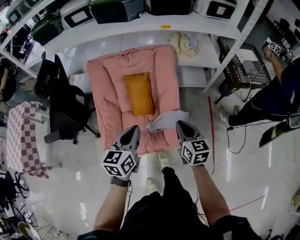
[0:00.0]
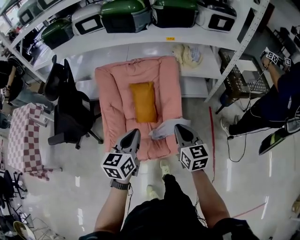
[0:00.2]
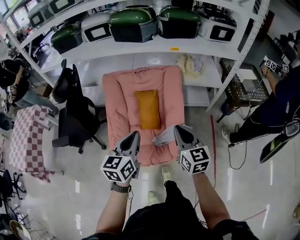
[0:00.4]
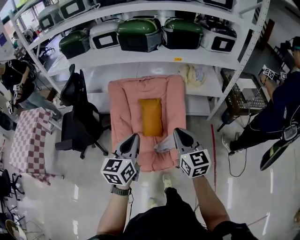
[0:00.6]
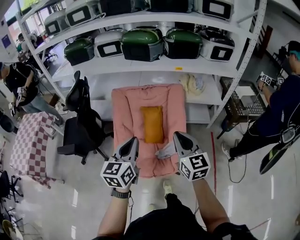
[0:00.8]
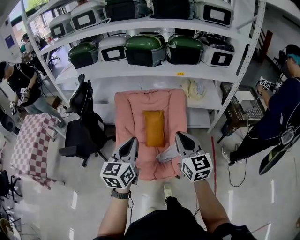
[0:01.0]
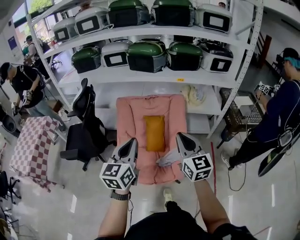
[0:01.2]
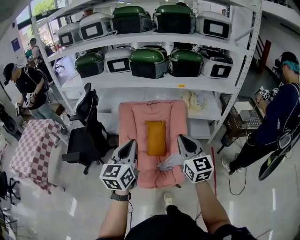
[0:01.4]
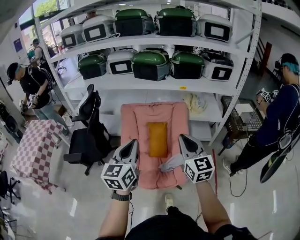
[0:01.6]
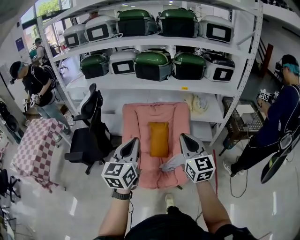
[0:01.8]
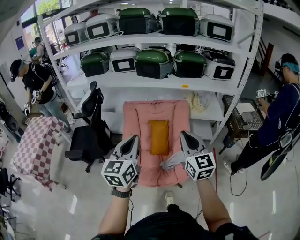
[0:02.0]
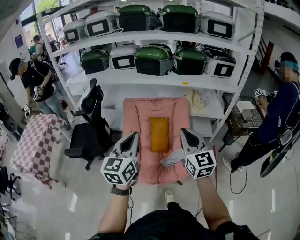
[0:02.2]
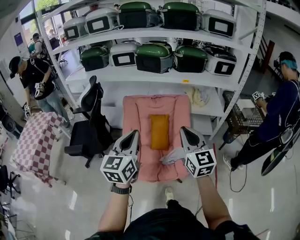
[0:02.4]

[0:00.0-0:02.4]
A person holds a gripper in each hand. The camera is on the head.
0:00.0 to 0:01.2: The left gripper is displaced upward and to the left by some 20 cm; the right gripper travels upward by about 25 cm, and swivels approximately 30 degrees.
0:01.2 to 0:02.4: The left gripper changes place by approximately 5 cm.

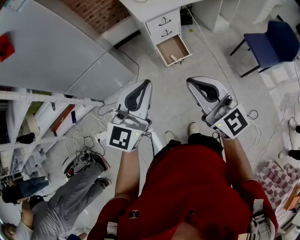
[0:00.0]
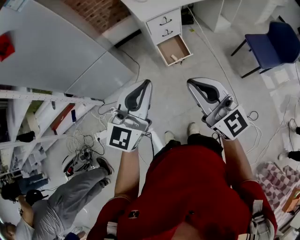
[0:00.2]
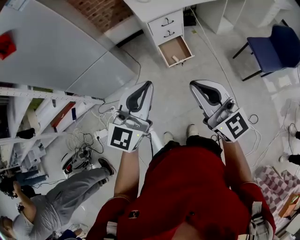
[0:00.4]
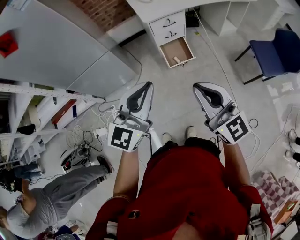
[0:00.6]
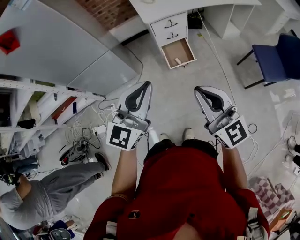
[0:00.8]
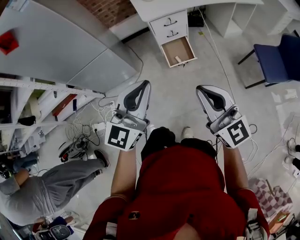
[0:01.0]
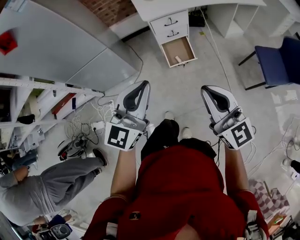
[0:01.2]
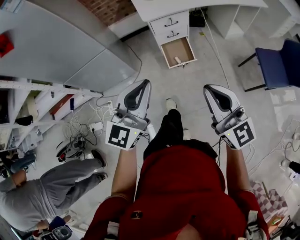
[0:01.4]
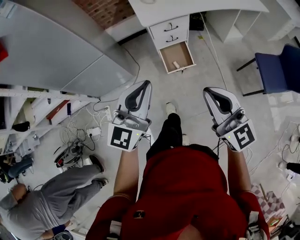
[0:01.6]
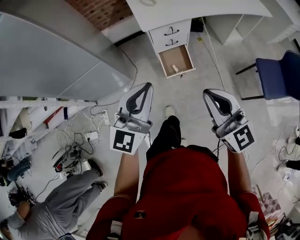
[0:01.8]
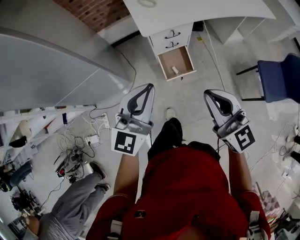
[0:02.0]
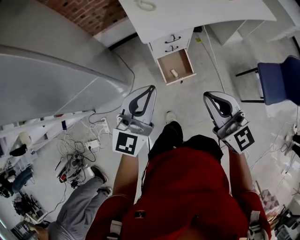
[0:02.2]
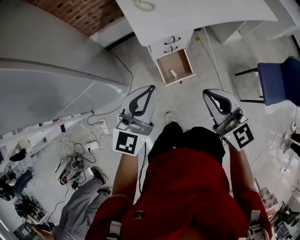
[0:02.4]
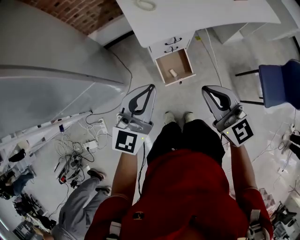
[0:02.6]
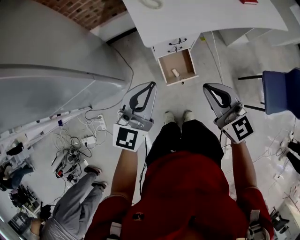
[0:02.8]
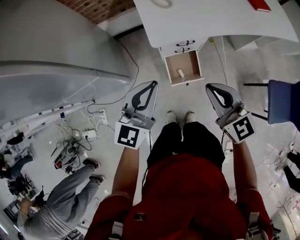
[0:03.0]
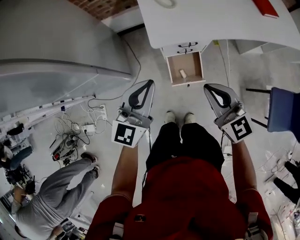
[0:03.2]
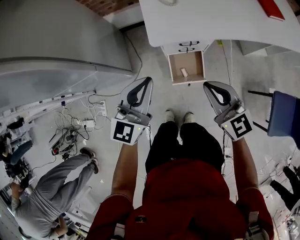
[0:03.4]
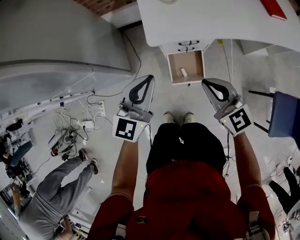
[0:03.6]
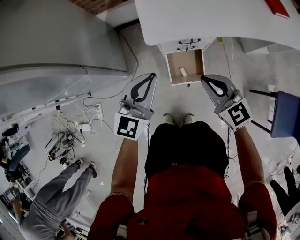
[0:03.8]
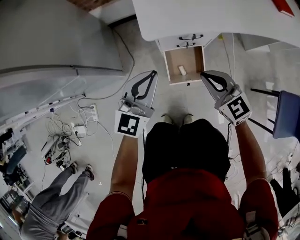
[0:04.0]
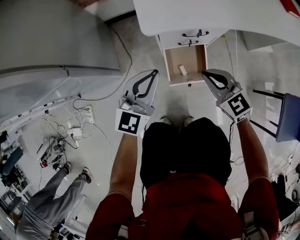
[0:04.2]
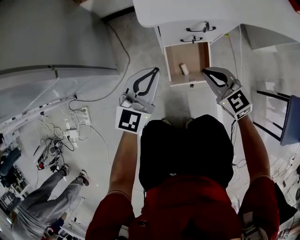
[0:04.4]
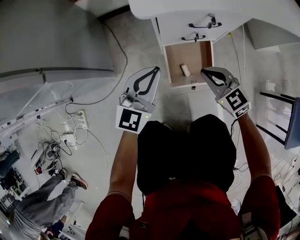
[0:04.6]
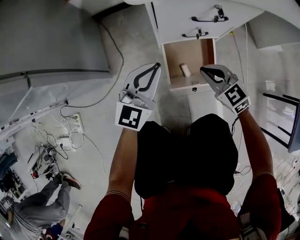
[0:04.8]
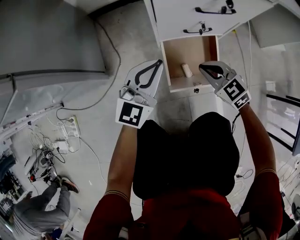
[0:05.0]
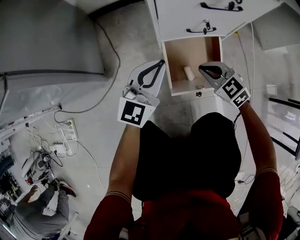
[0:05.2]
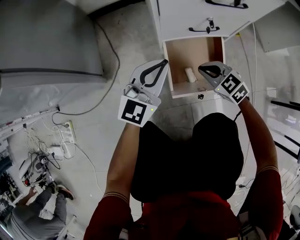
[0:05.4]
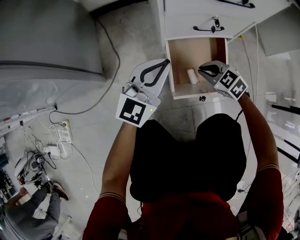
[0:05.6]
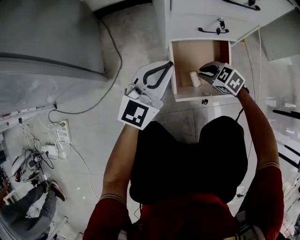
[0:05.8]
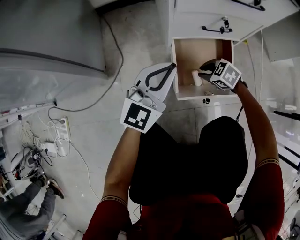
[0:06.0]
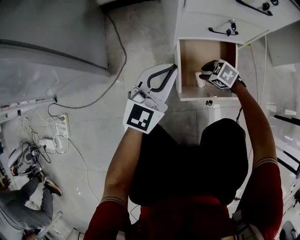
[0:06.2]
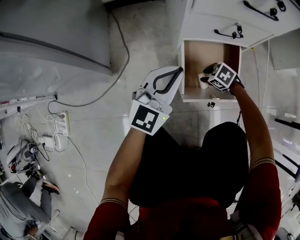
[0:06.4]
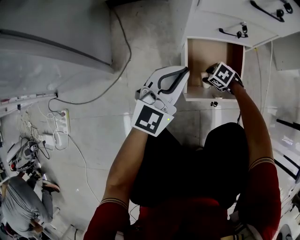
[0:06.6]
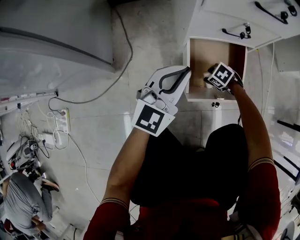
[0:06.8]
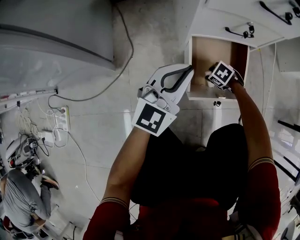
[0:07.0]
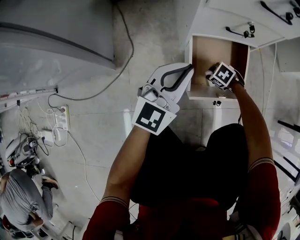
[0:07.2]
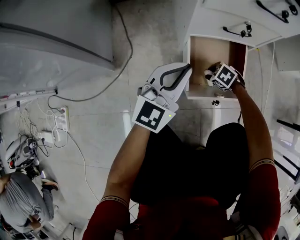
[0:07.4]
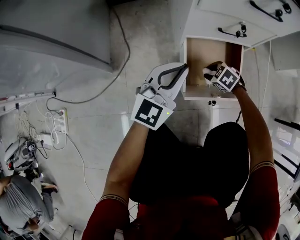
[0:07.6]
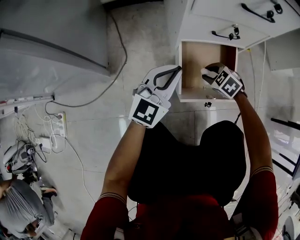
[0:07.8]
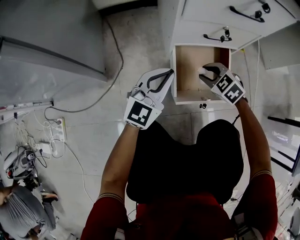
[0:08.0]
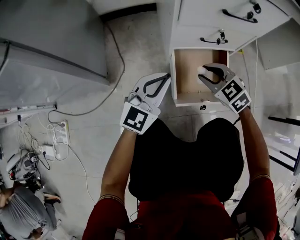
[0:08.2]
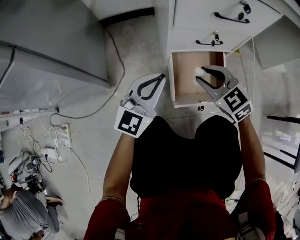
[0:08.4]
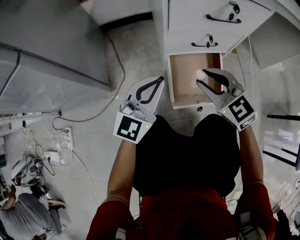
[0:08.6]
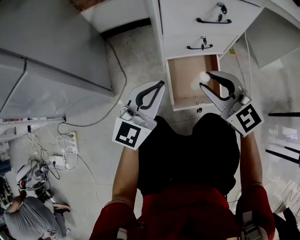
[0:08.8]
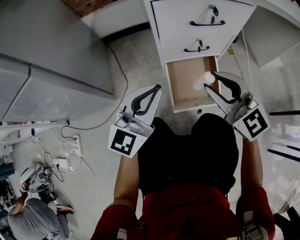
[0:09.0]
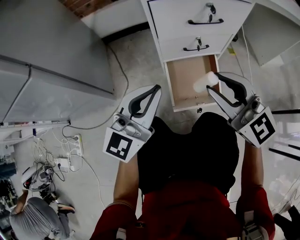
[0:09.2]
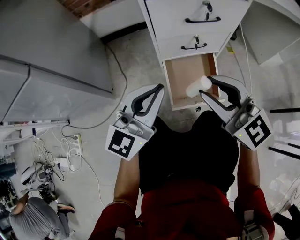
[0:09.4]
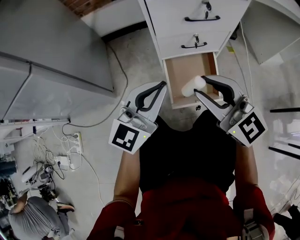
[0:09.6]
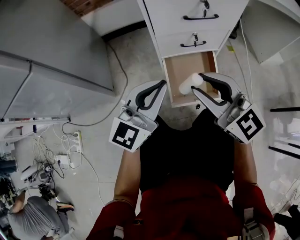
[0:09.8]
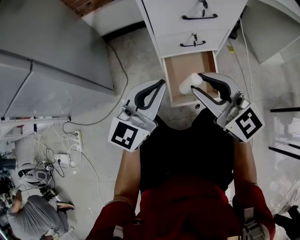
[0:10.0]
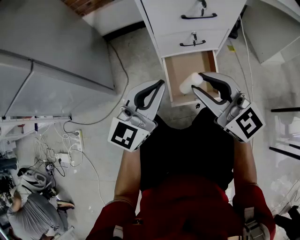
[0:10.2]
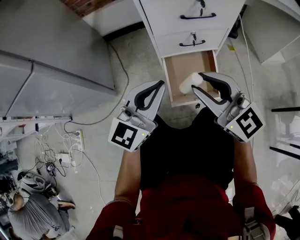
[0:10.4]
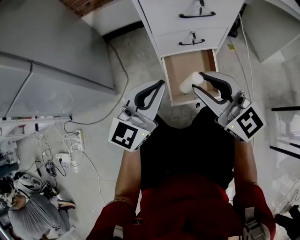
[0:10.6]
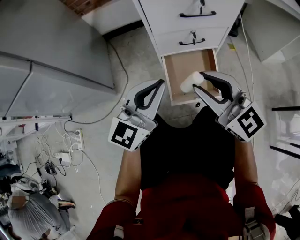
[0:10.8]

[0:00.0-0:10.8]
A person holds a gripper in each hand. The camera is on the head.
0:00.0 to 0:01.6: The left gripper heads forward and to the right, covering some 15 cm; the right gripper goes about 15 cm to the right and forward.
0:01.6 to 0:03.0: Both grippers travel together forward, about 35 cm.
0:03.0 to 0:04.6: Both grippers move downward, roughly 40 cm. The right gripper swivels approximately 20 degrees.
0:04.6 to 0:06.2: The left gripper travels downward by roughly 20 cm, while the right gripper goes roughly 35 cm downward, angles its fingers downward, by approximately 30 degrees, and opens.
0:06.2 to 0:07.8: The right gripper moves approximately 5 cm downward and comes back.
0:07.8 to 0:09.2: The left gripper moves upward, approximately 20 cm. Meanwhile the right gripper moves upward, about 40 cm, and angles its fingers upward, by approximately 60 degrees.
0:09.2 to 0:10.8: The grippers stay close to where they were, moving slightly.

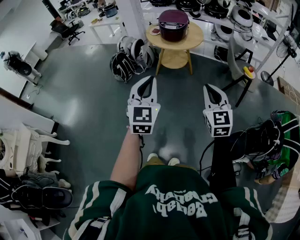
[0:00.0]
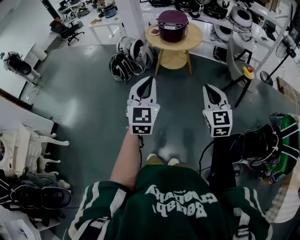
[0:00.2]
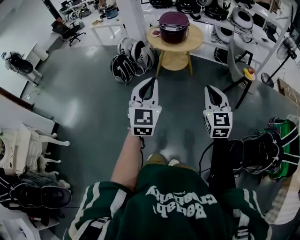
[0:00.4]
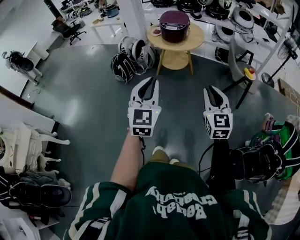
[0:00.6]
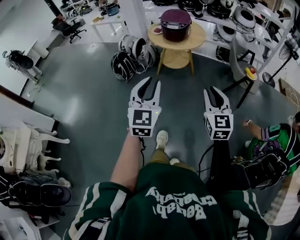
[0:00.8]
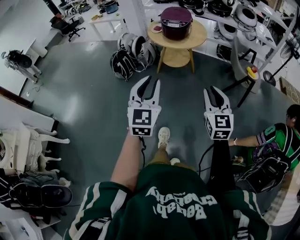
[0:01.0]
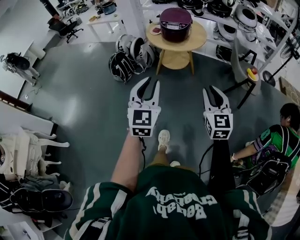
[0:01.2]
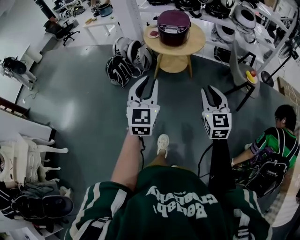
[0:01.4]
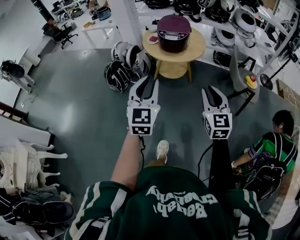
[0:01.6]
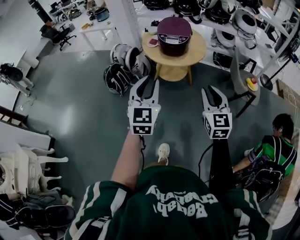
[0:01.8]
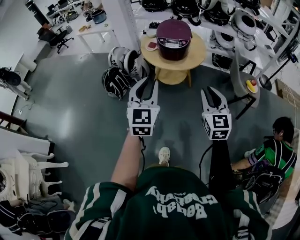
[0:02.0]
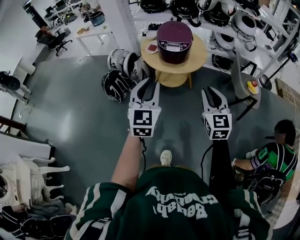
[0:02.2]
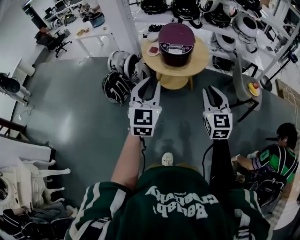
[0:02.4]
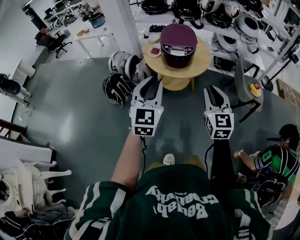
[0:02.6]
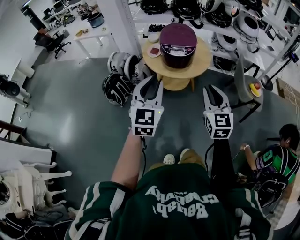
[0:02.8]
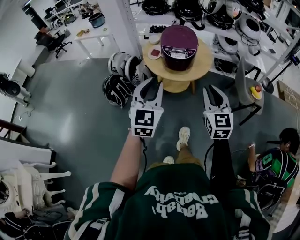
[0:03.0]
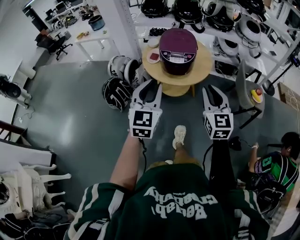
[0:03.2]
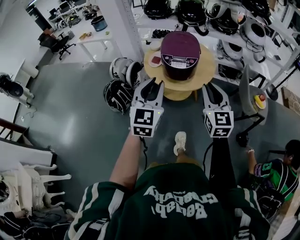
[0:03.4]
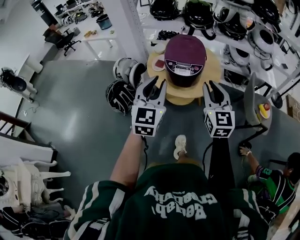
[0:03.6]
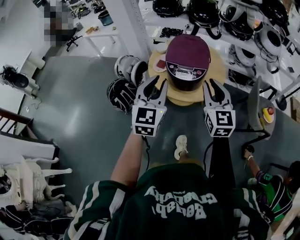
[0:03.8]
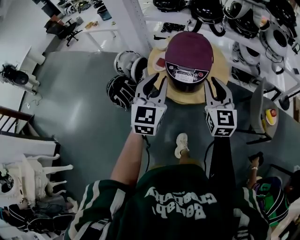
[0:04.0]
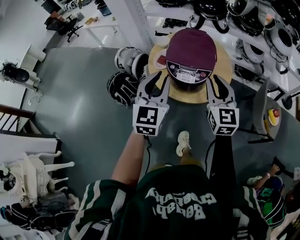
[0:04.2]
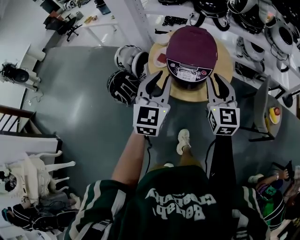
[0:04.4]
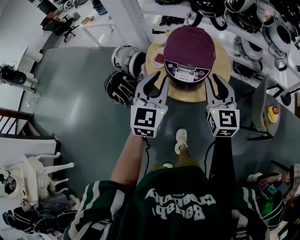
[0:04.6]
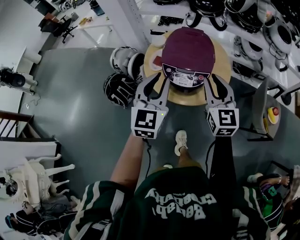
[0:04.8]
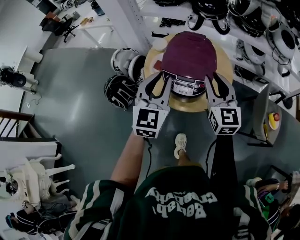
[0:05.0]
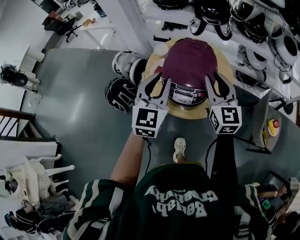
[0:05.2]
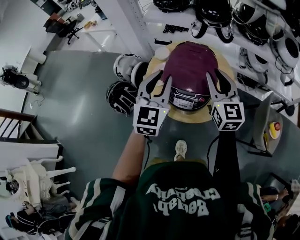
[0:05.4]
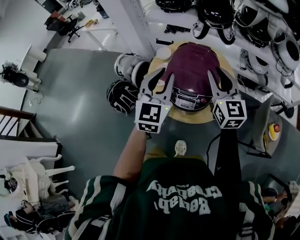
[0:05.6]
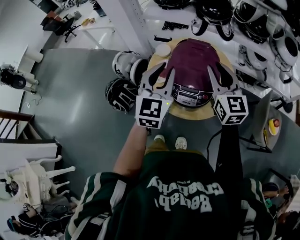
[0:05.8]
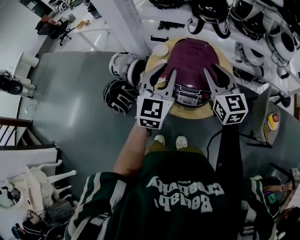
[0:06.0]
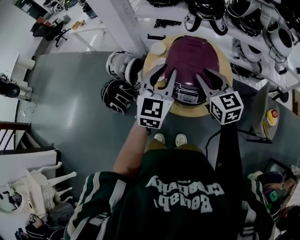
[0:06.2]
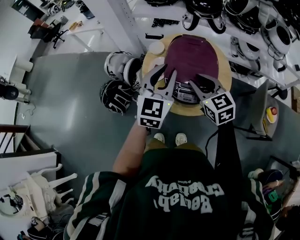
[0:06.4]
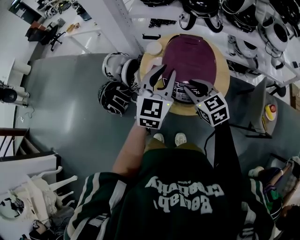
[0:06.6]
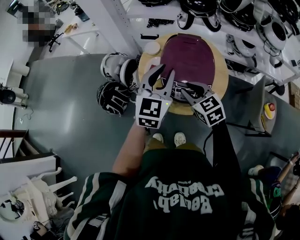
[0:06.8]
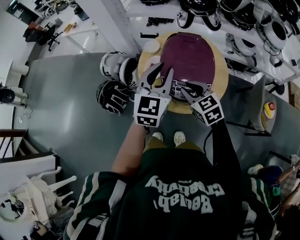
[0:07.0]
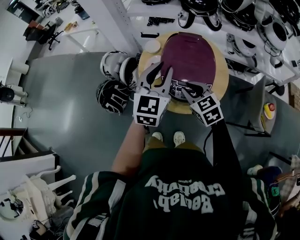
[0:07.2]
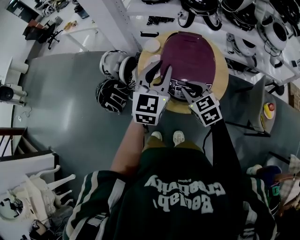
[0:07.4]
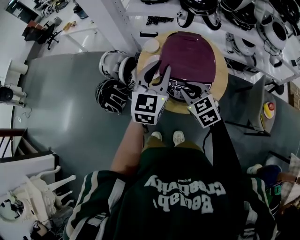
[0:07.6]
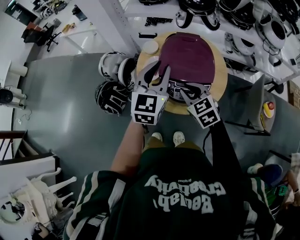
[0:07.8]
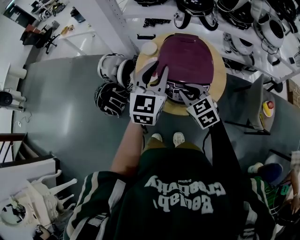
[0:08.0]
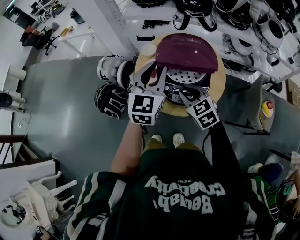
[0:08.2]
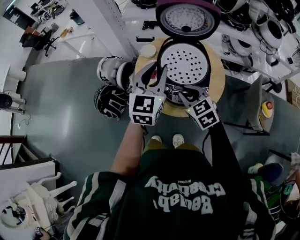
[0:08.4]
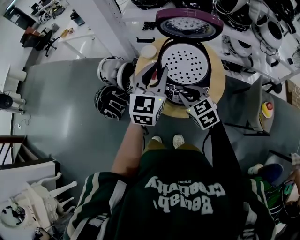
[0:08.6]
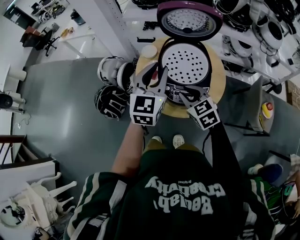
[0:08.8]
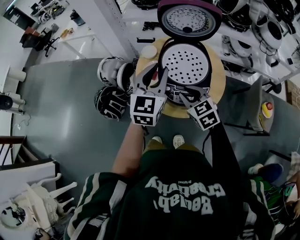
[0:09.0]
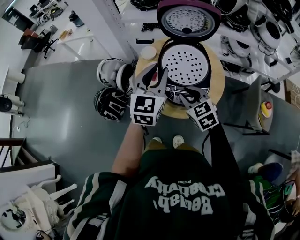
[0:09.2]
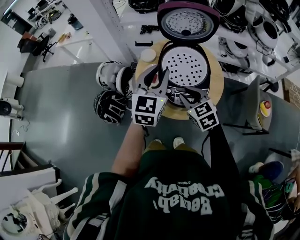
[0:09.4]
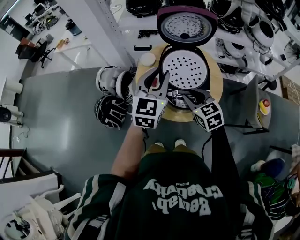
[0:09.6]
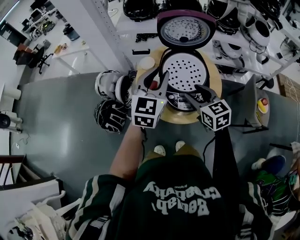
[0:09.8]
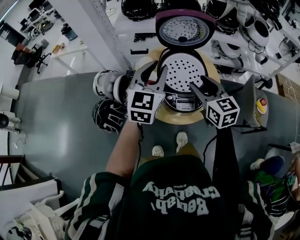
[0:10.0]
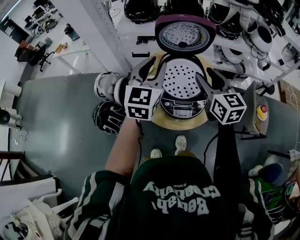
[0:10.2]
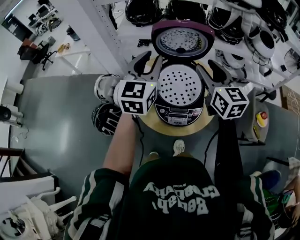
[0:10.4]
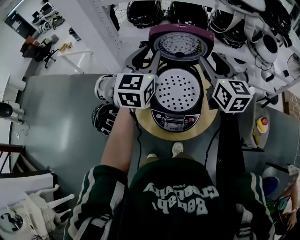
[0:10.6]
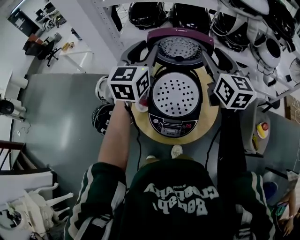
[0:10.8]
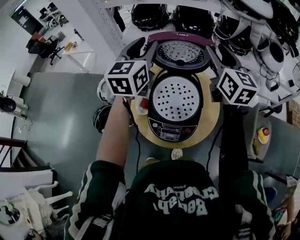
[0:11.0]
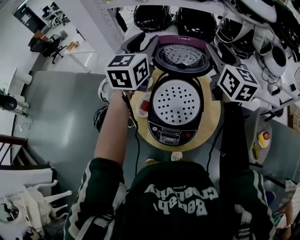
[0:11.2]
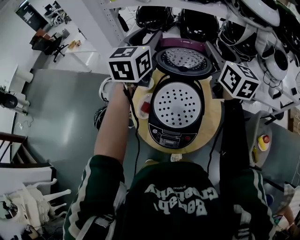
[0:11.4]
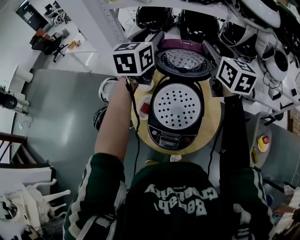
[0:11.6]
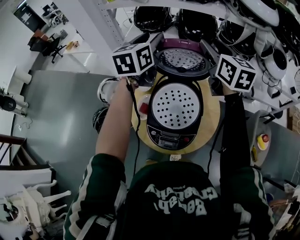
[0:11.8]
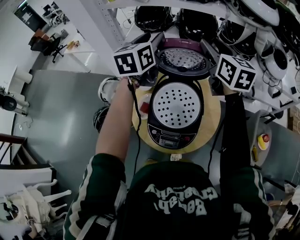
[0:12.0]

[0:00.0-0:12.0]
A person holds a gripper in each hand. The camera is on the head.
0:00.0 to 0:01.6: The grippers both shift forward by roughly 20 cm. The right gripper opens up.
0:01.6 to 0:03.0: Both grippers move forward, about 20 cm.
0:03.0 to 0:04.4: The grippers both shift forward by about 25 cm.
0:04.4 to 0:06.0: Both grippers travel together forward, approximately 15 cm.
0:06.0 to 0:07.6: The right gripper heads downward and to the left, covering some 15 cm, and rotates approximately 30 degrees.
0:07.6 to 0:09.0: There are only small adjustments of the grippers.
0:09.0 to 0:10.4: The right gripper moves upward, forward and to the right, some 25 cm, rotates some 40 degrees, and opens up, while the left gripper heads forward and upward, covering approximately 15 cm.
0:10.4 to 0:12.0: The two grippers go roughly 20 cm forward.
